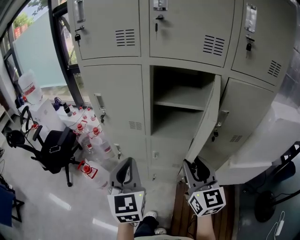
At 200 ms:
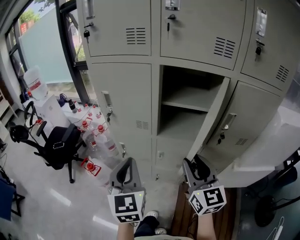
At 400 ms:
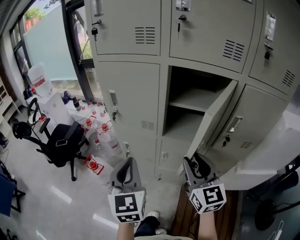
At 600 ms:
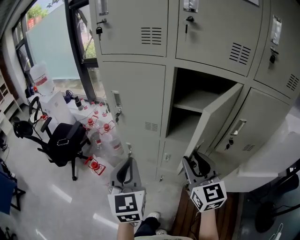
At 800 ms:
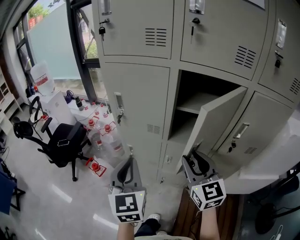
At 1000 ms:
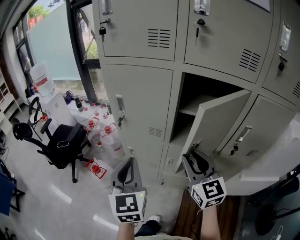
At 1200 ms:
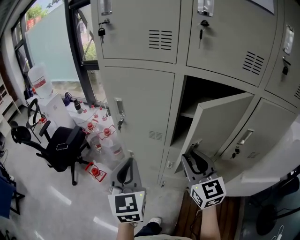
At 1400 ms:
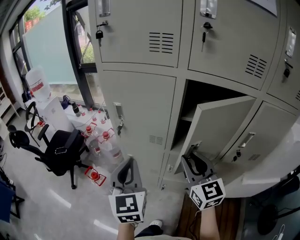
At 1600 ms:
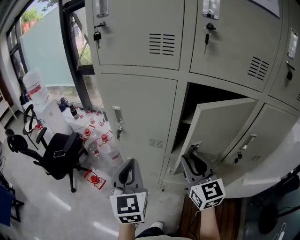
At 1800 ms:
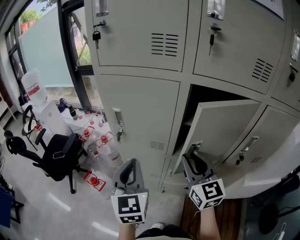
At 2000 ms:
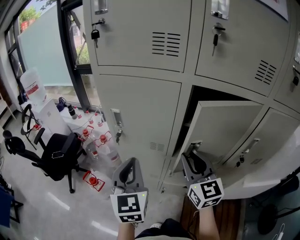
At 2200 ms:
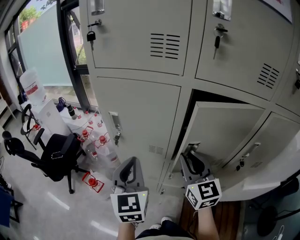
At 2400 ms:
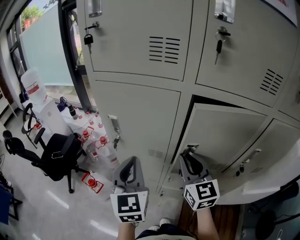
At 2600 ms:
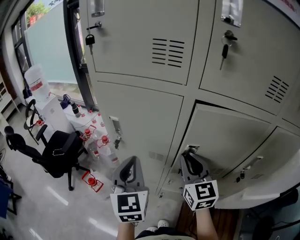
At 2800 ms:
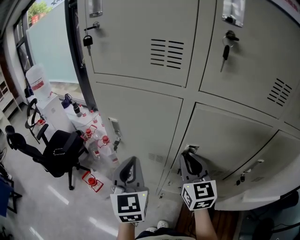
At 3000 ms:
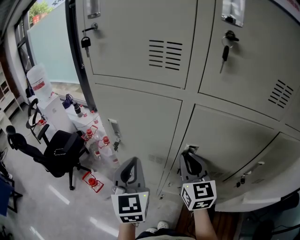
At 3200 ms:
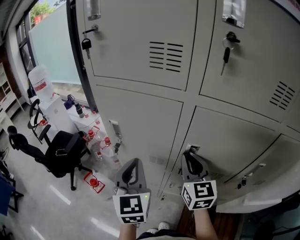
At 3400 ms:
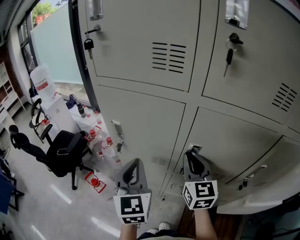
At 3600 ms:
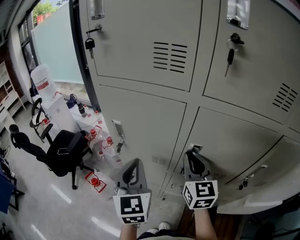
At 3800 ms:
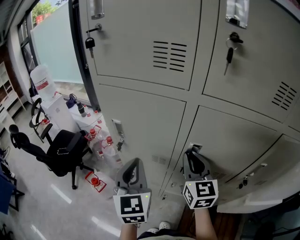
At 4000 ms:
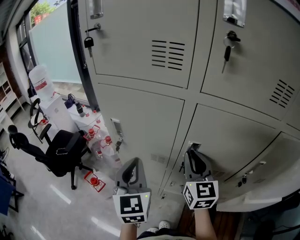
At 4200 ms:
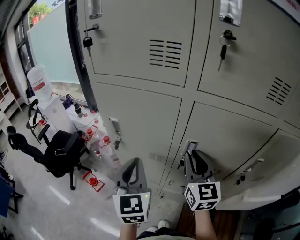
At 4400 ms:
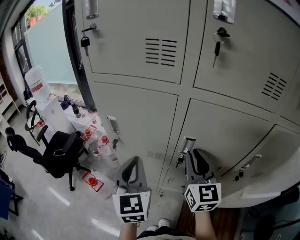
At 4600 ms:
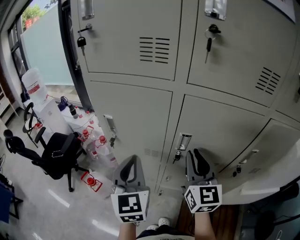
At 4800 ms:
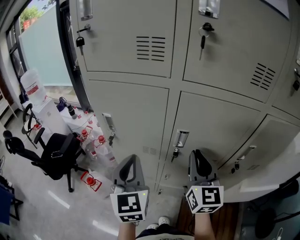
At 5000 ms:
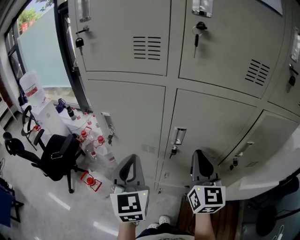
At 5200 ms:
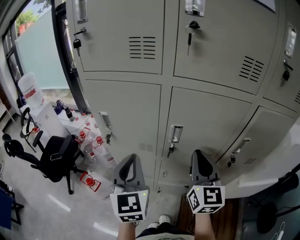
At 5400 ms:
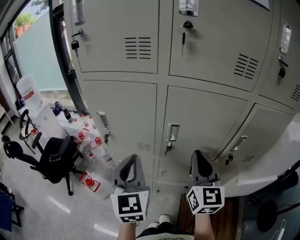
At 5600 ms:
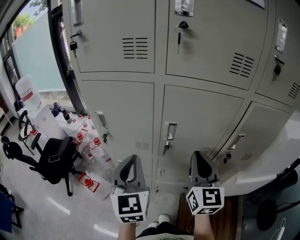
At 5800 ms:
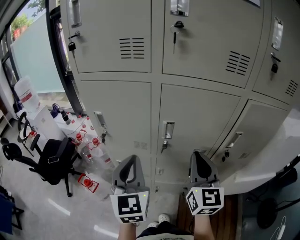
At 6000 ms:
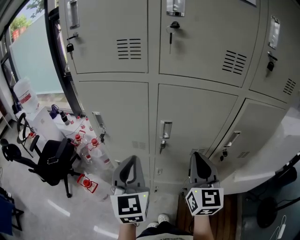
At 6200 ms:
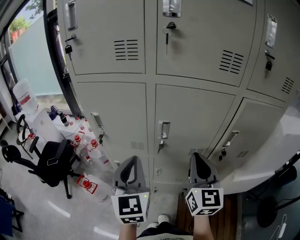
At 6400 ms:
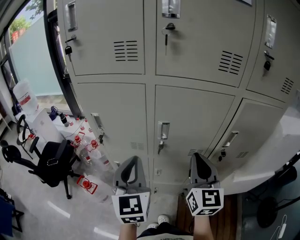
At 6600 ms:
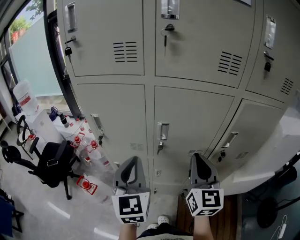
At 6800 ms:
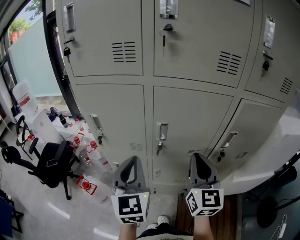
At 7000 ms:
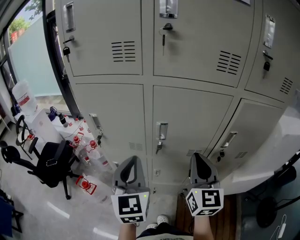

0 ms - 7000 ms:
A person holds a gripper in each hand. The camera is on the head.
0 ms - 1400 ms: The grippers both shift forward and to the left by approximately 15 cm.
1400 ms - 2800 ms: Both grippers travel together forward, about 10 cm.
2800 ms - 4200 ms: The grippers stay close to where they were, moving slightly.
4200 ms - 5600 ms: The left gripper goes approximately 5 cm backward; the right gripper shifts some 10 cm backward and to the right.
5600 ms - 7000 ms: The grippers stay close to where they were, moving slightly.

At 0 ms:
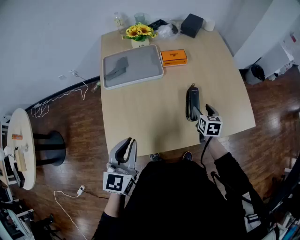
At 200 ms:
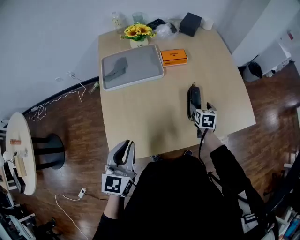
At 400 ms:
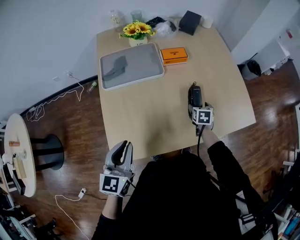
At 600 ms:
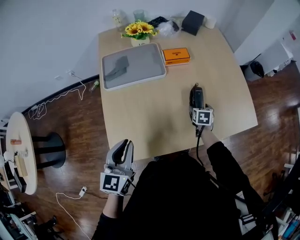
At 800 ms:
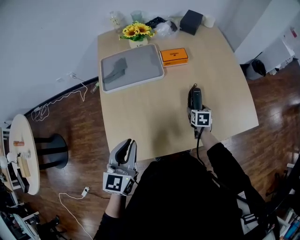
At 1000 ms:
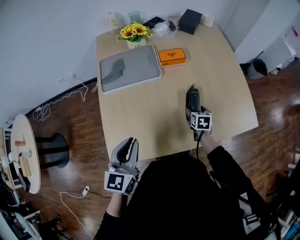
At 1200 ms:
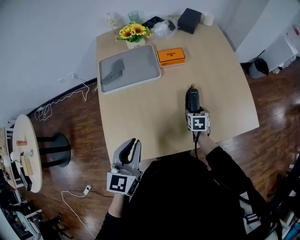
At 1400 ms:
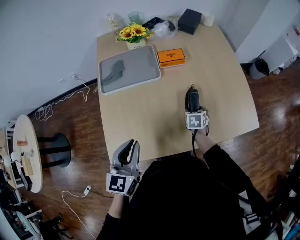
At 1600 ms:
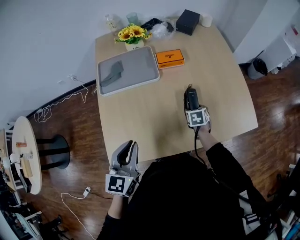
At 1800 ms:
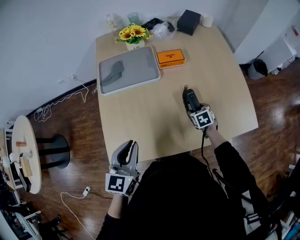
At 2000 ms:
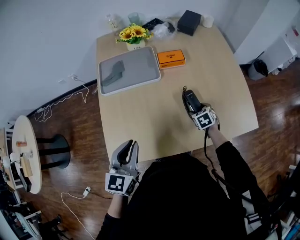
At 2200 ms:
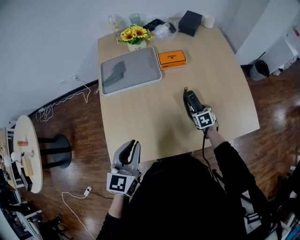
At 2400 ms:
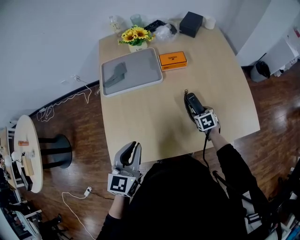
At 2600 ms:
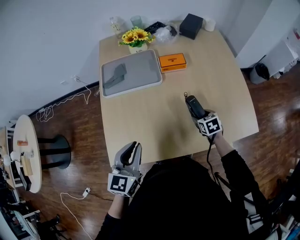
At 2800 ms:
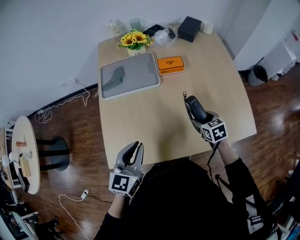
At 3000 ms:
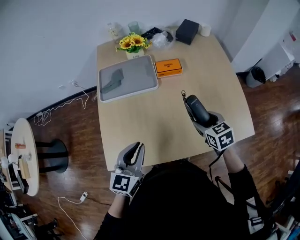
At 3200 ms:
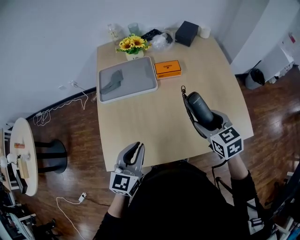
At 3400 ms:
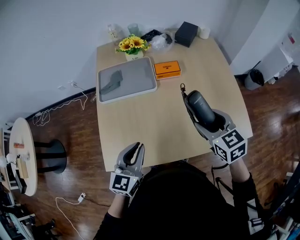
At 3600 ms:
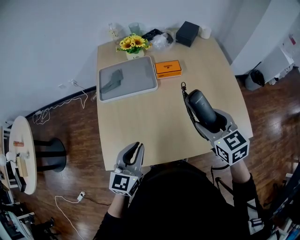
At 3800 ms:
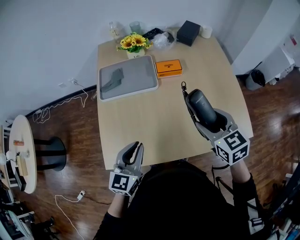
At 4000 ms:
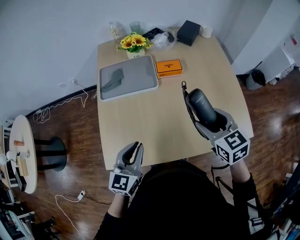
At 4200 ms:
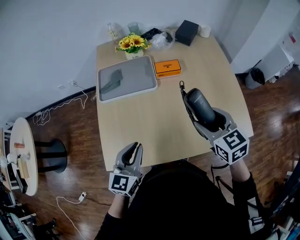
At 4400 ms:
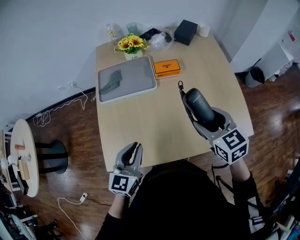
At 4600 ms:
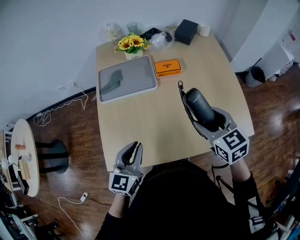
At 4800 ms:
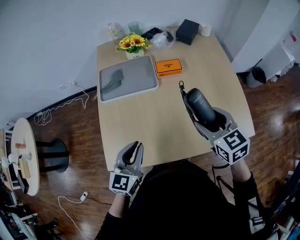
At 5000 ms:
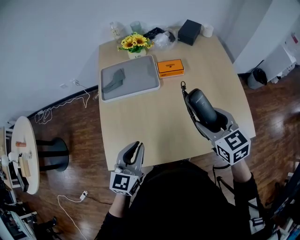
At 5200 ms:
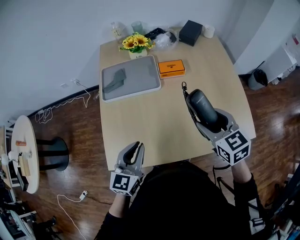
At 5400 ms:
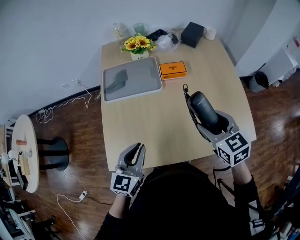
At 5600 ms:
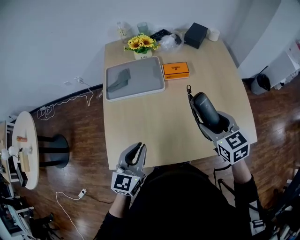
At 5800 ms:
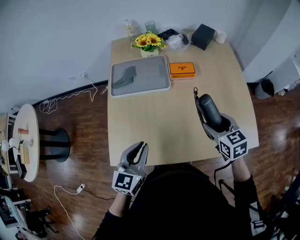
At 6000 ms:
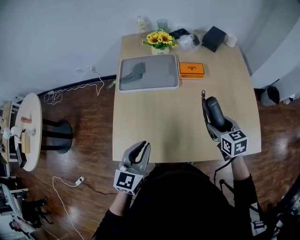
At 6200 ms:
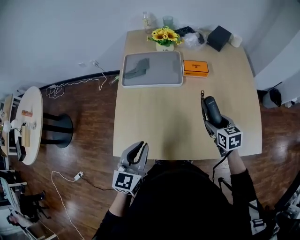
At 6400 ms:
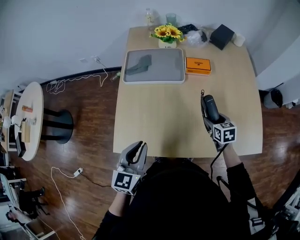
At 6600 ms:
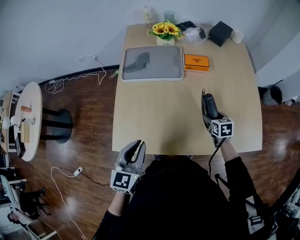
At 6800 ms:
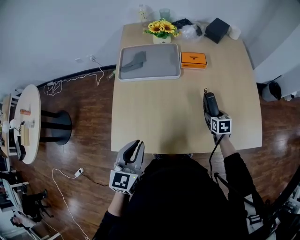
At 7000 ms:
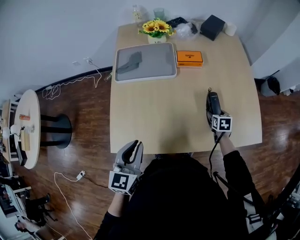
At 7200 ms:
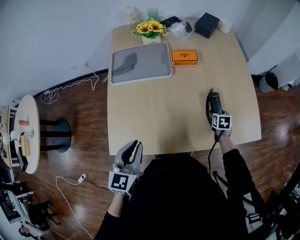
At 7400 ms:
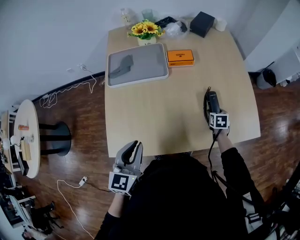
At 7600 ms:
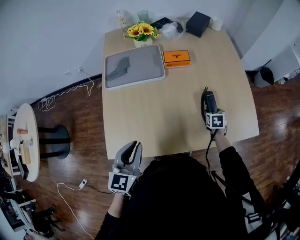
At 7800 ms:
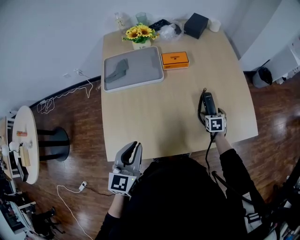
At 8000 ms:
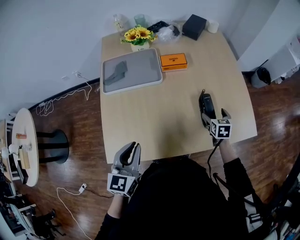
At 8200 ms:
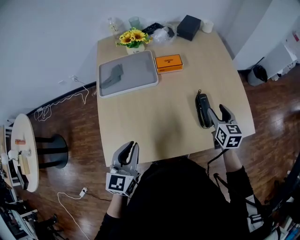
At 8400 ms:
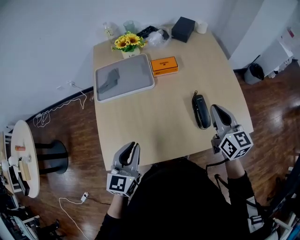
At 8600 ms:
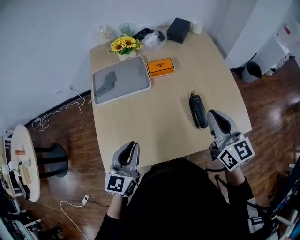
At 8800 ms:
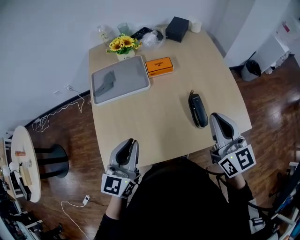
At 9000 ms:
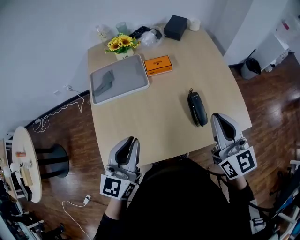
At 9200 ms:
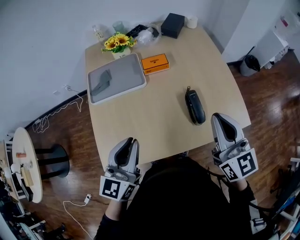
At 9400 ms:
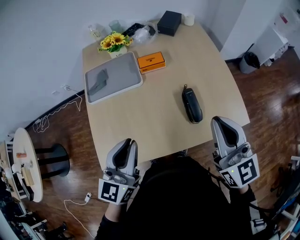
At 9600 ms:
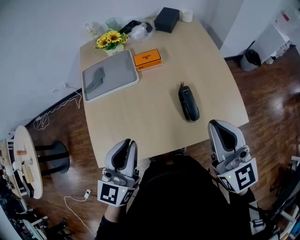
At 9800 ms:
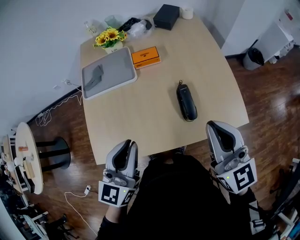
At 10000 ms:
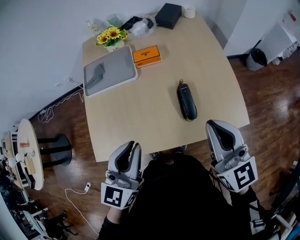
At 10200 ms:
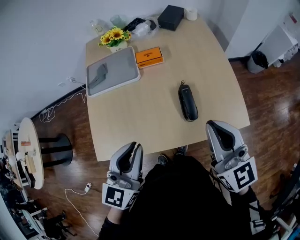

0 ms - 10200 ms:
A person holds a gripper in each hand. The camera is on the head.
0 ms - 1400 ms: The right gripper shifts approximately 10 cm downward.
1400 ms - 3000 ms: The right gripper goes some 15 cm upward, and changes its angle by roughly 30 degrees.
3000 ms - 4400 ms: The right gripper heads upward, covering roughly 10 cm.
4400 ms - 5800 ms: The right gripper is displaced downward by some 5 cm.
5800 ms - 7200 ms: The right gripper moves downward and to the right, about 25 cm, and rotates about 30 degrees.
7200 ms - 8800 ms: The right gripper moves upward, about 35 cm, tips its fingers upward by about 50 degrees, and closes its fingers. Meanwhile the left gripper moves upward and forward, roughly 10 cm.
8800 ms - 10200 ms: The left gripper is displaced to the right by some 10 cm. The right gripper moves to the right, some 5 cm.

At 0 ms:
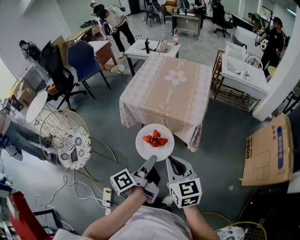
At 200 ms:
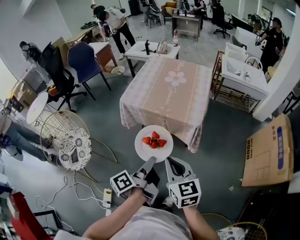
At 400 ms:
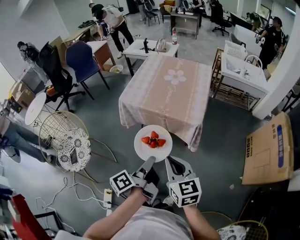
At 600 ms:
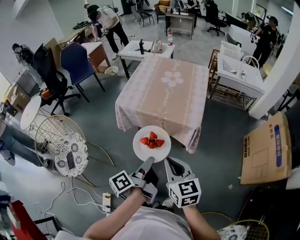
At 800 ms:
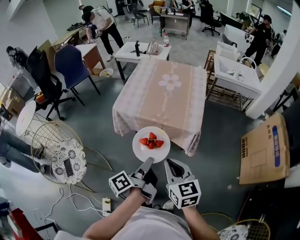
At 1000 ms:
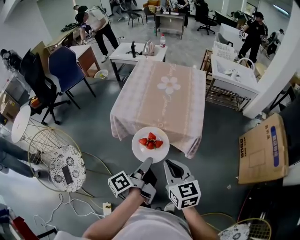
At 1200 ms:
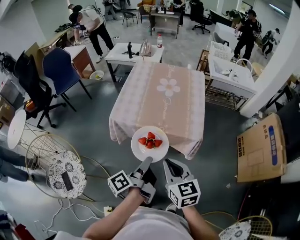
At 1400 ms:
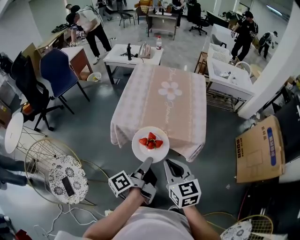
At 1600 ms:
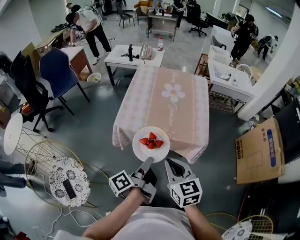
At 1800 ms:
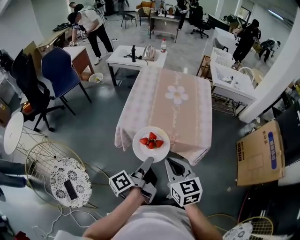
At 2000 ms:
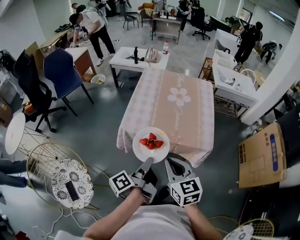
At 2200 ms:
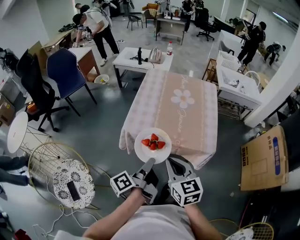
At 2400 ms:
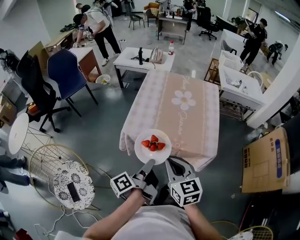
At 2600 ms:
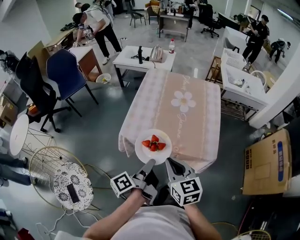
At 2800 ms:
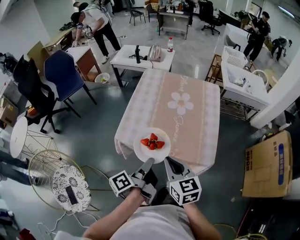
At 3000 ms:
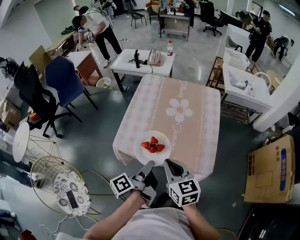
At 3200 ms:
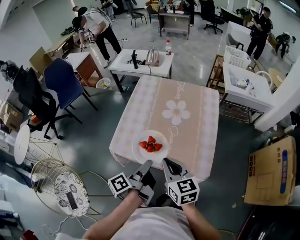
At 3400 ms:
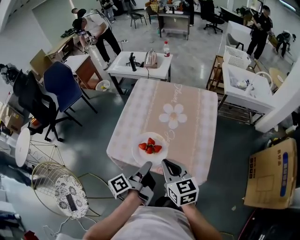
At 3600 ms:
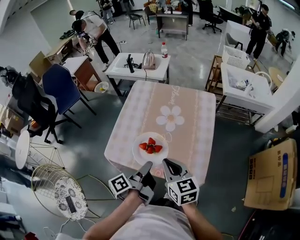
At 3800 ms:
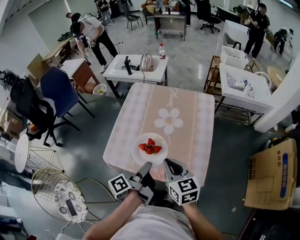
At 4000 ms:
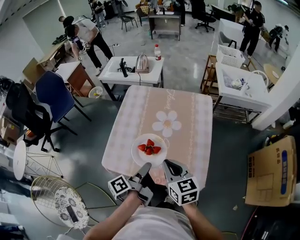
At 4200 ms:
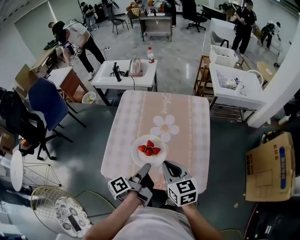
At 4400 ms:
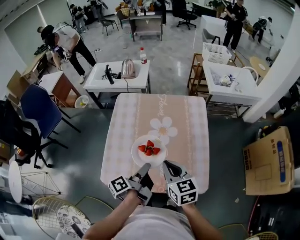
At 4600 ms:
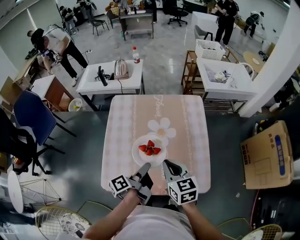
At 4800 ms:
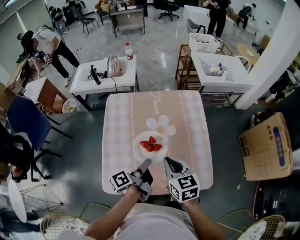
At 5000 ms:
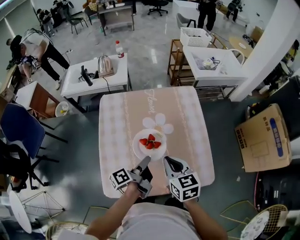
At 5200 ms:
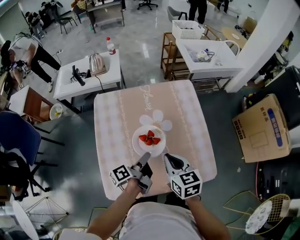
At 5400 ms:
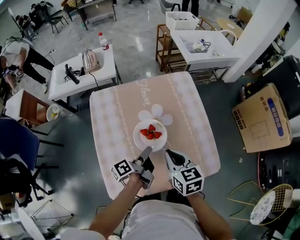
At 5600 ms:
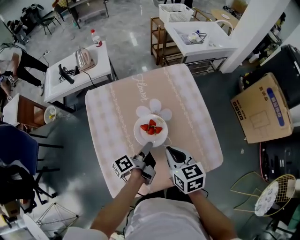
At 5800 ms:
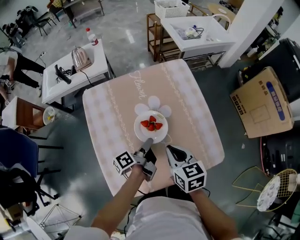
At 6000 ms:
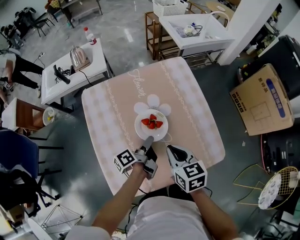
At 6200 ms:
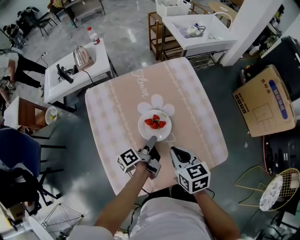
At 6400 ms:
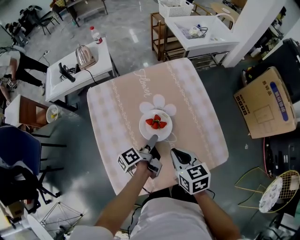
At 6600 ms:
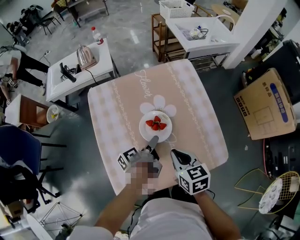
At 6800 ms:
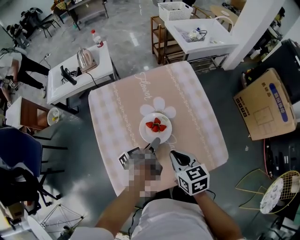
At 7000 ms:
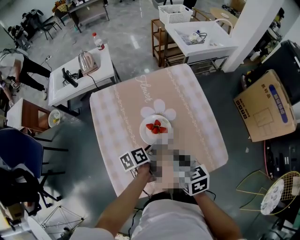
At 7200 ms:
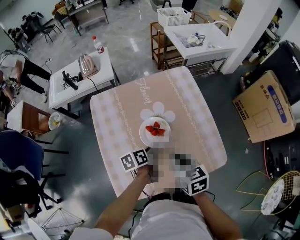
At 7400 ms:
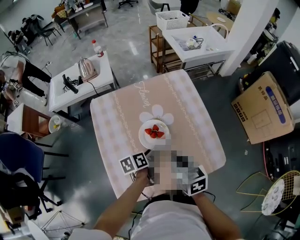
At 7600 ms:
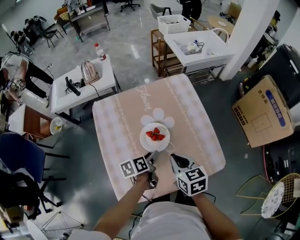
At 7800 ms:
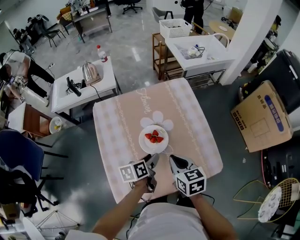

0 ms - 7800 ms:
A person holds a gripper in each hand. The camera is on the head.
0 ms - 1600 ms: The right gripper moves approximately 20 cm.
1600 ms - 3200 ms: The right gripper changes place by approximately 20 cm.
3200 ms - 4600 ms: The right gripper shifts by some 15 cm.
4600 ms - 6200 ms: The right gripper is displaced downward by about 10 cm, and changes its angle by roughly 20 degrees.
